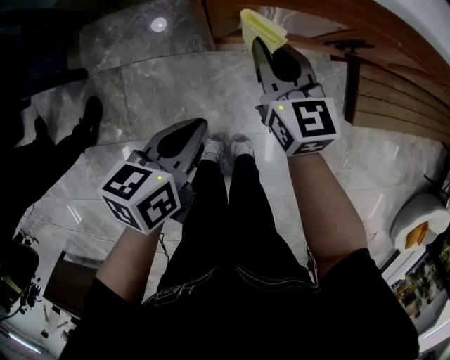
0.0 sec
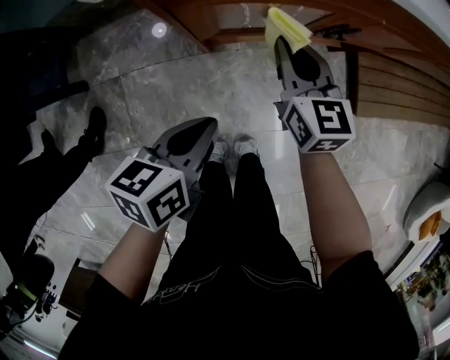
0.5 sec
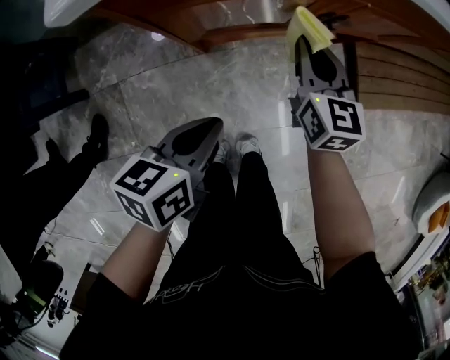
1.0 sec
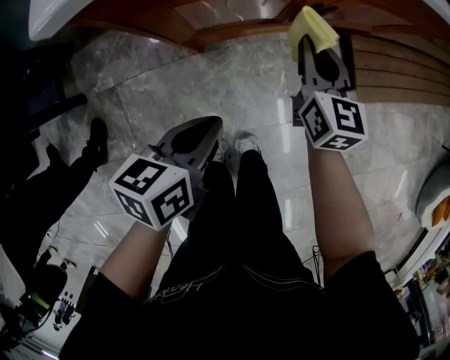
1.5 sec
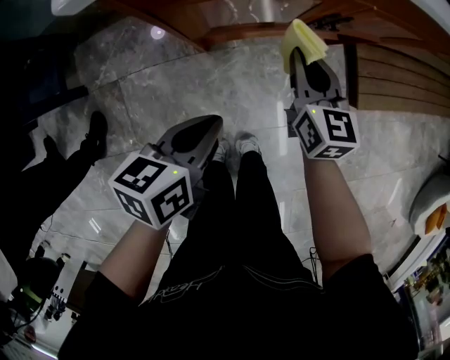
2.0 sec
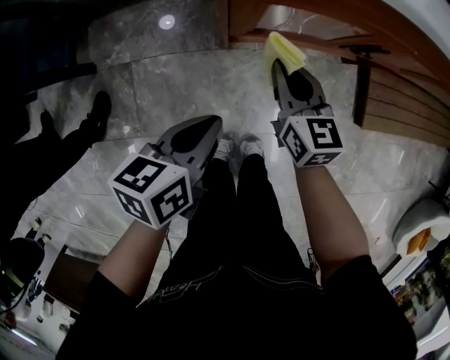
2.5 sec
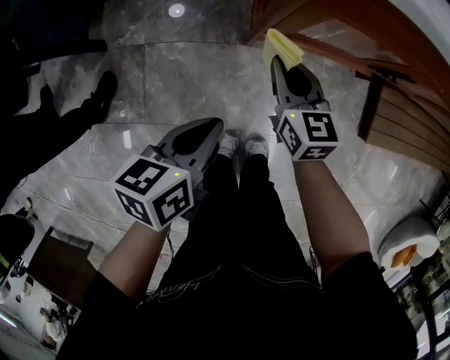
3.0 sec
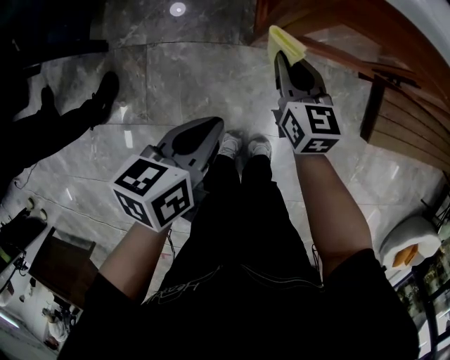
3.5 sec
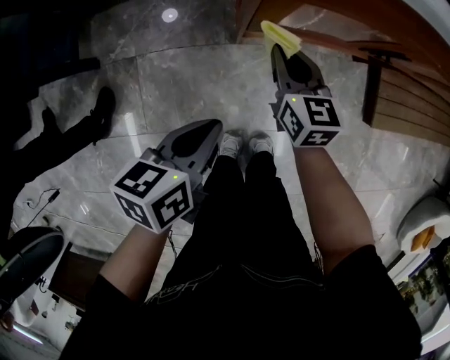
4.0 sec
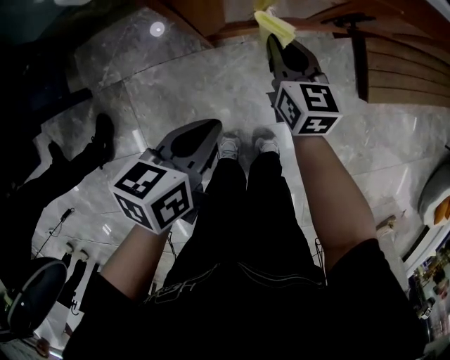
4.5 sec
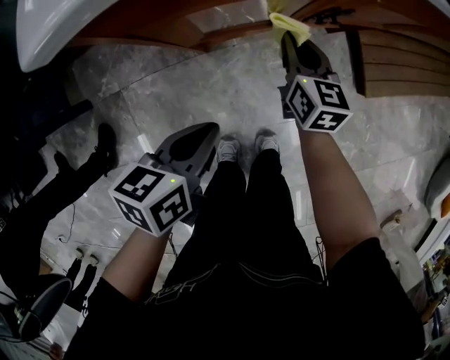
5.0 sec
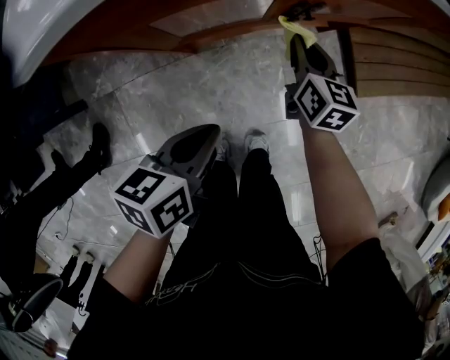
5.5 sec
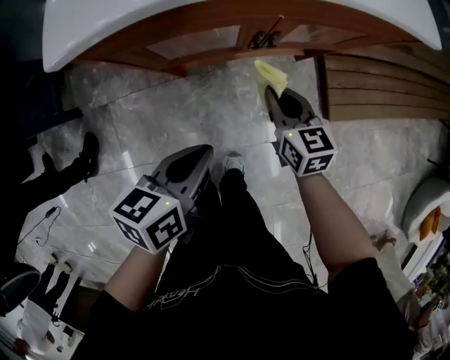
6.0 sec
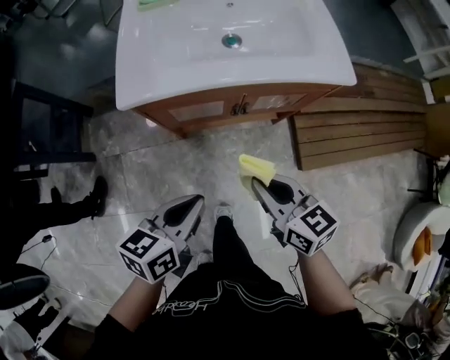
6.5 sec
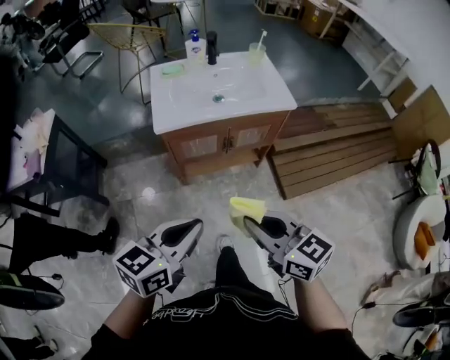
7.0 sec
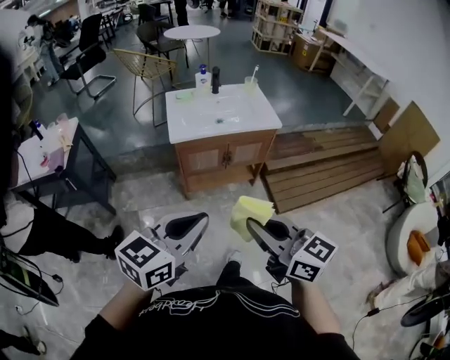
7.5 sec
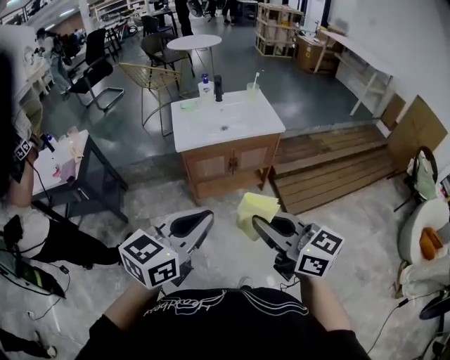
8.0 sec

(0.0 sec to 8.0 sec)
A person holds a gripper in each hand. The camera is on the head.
0.0 sec - 2.0 sec: The right gripper goes roughly 15 cm to the right; the left gripper goes approximately 5 cm to the right.
2.0 sec - 4.0 sec: The right gripper goes some 15 cm to the left. Meanwhile the left gripper moves to the left, about 10 cm.
4.0 sec - 6.0 sec: The left gripper goes about 20 cm to the right and upward; the right gripper is displaced to the right by roughly 20 cm.
6.0 sec - 8.0 sec: Both grippers travel together upward and backward, approximately 70 cm. The left gripper turns by about 50 degrees. Meanwhile the right gripper angles its fingers upward, by approximately 30 degrees.

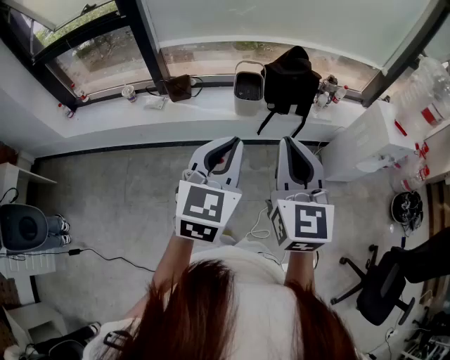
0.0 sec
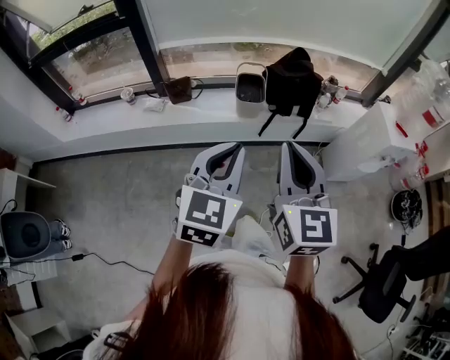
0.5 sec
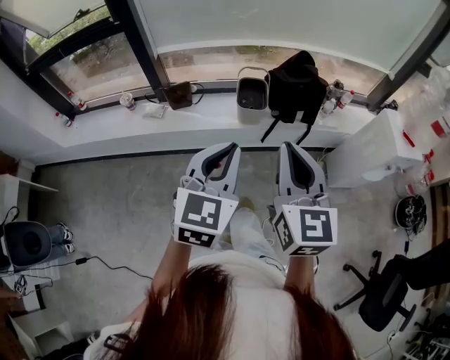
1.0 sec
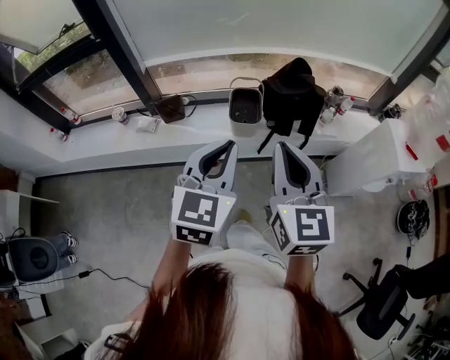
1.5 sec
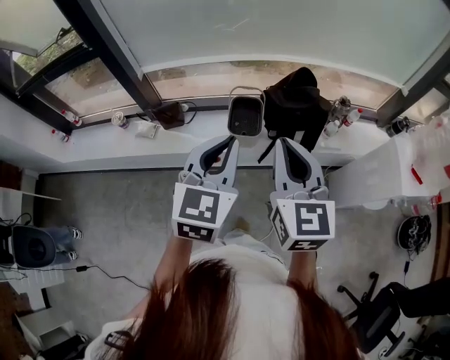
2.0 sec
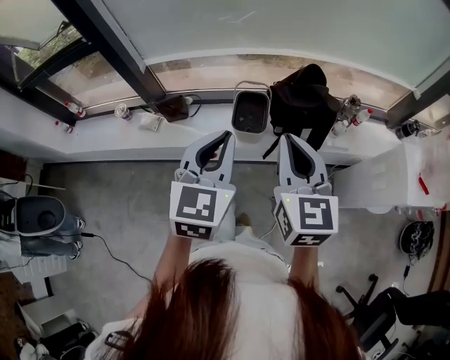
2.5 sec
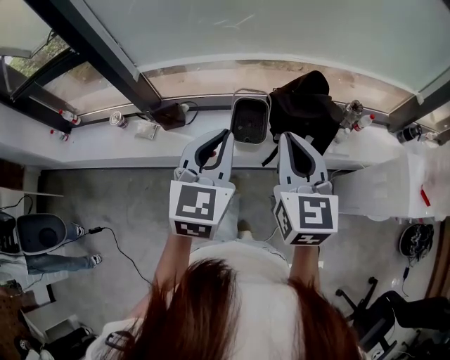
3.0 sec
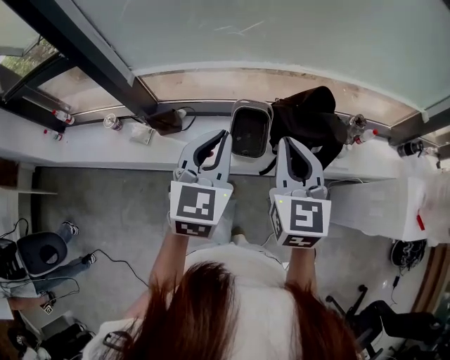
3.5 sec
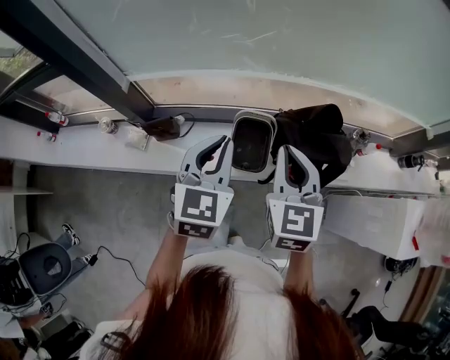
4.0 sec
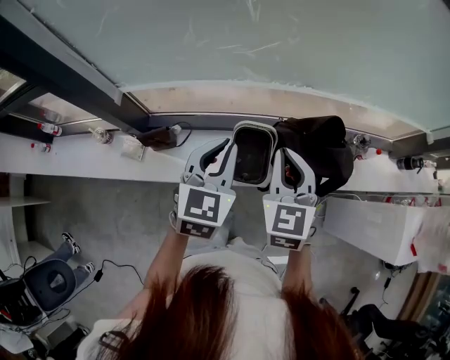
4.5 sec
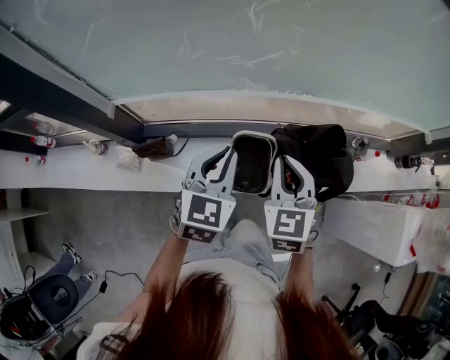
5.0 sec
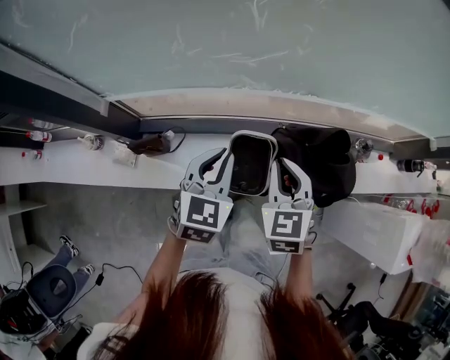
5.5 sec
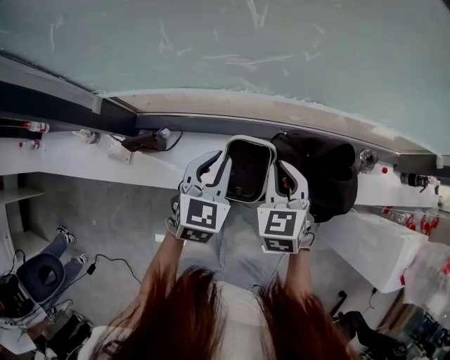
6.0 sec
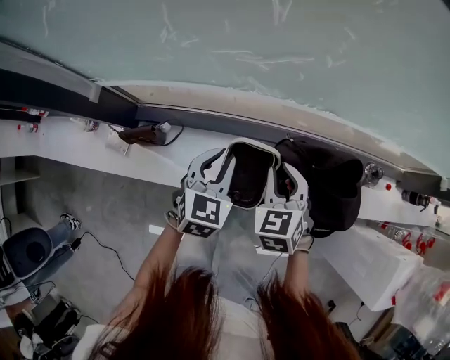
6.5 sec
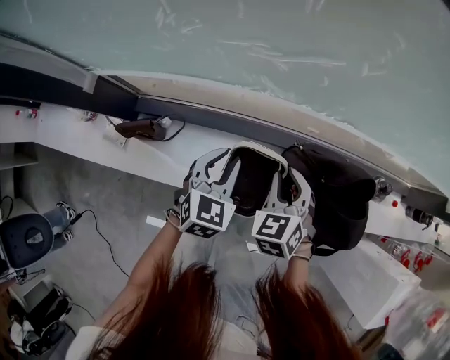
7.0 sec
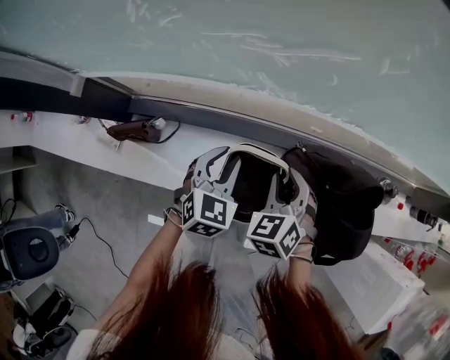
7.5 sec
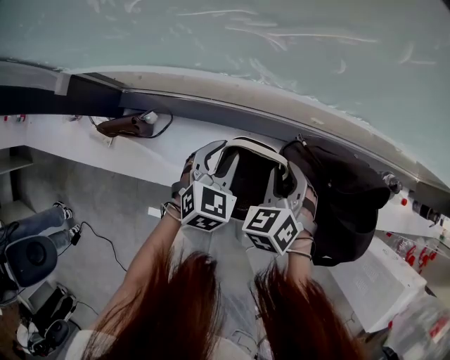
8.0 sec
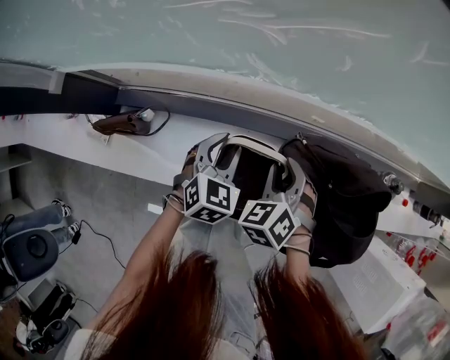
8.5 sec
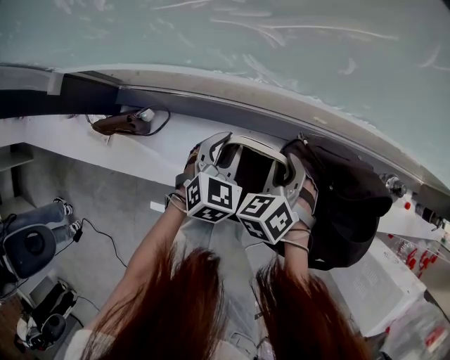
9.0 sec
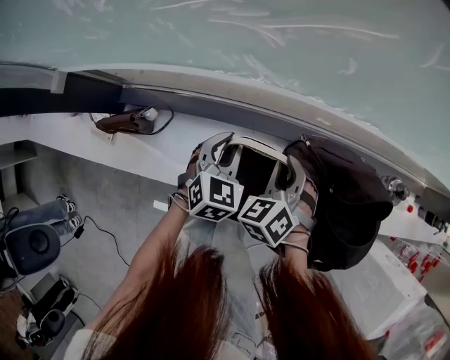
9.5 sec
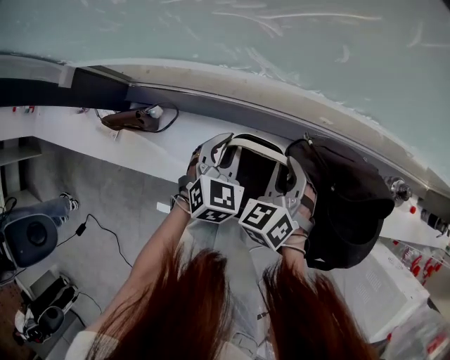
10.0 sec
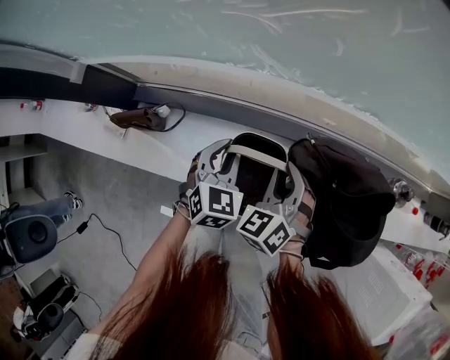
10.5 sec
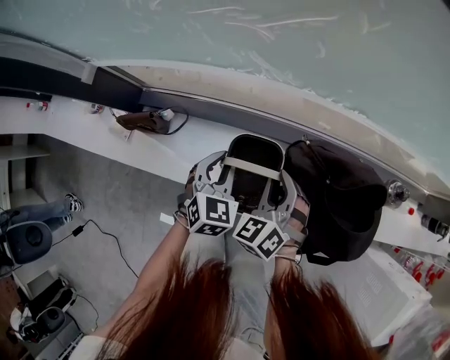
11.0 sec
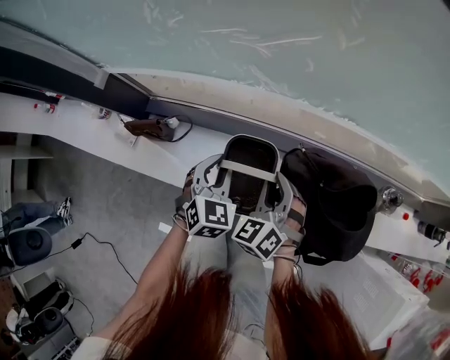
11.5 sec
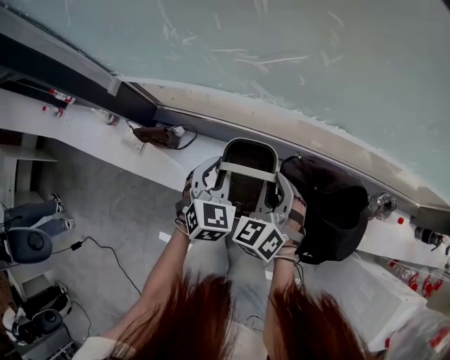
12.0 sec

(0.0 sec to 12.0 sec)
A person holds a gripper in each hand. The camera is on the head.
0.0 sec - 2.0 sec: The grippers both shift forward by some 30 cm.
2.0 sec - 4.0 sec: Both grippers travel together forward, about 25 cm.
4.0 sec - 6.0 sec: The two grippers go approximately 20 cm downward and forward. The right gripper turns by approximately 20 degrees.
6.0 sec - 8.0 sec: Both grippers travel together downward, about 20 cm. The right gripper rotates roughly 30 degrees, and opens its fingers.
8.0 sec - 10.0 sec: The grippers make only small movements.
10.0 sec - 12.0 sec: The left gripper shifts roughly 15 cm upward and backward. Meanwhile the right gripper travels upward by about 10 cm.

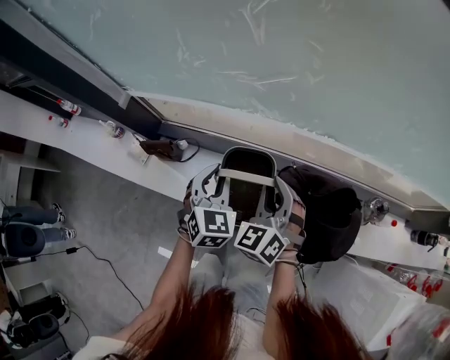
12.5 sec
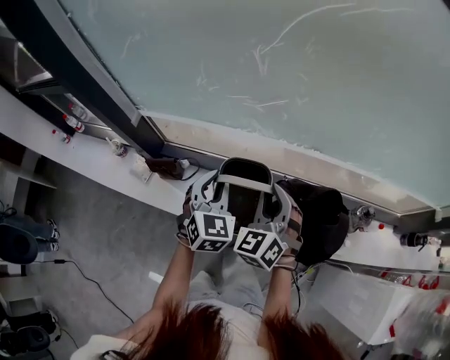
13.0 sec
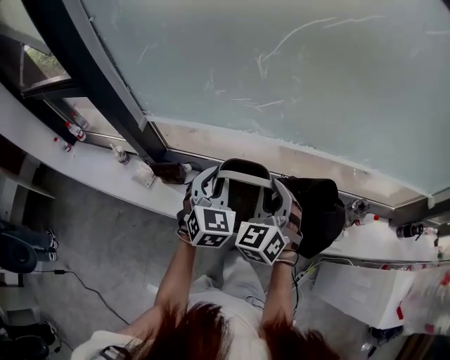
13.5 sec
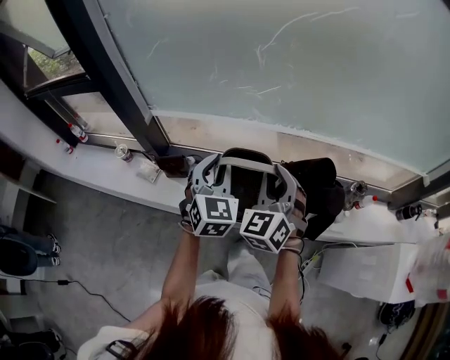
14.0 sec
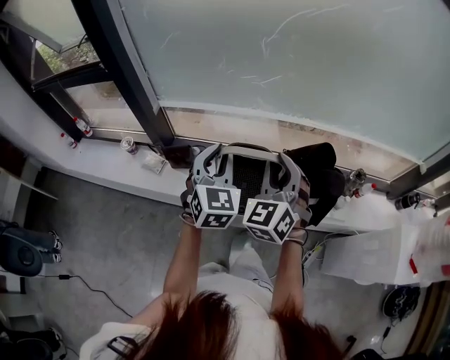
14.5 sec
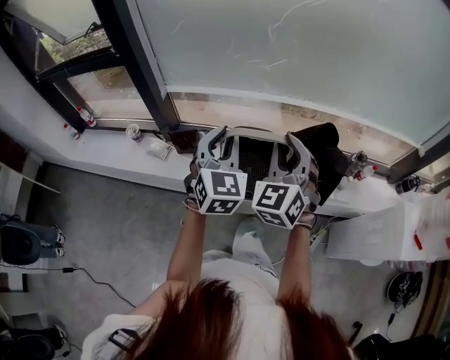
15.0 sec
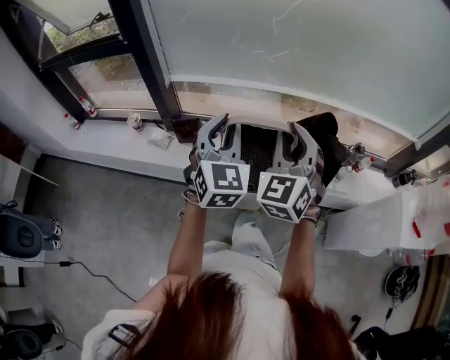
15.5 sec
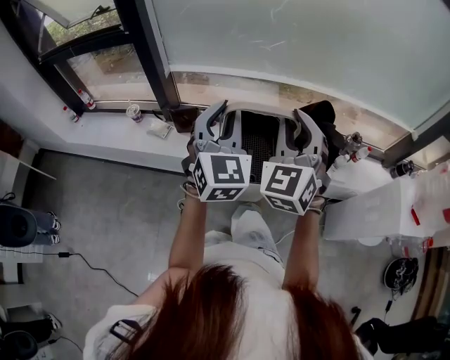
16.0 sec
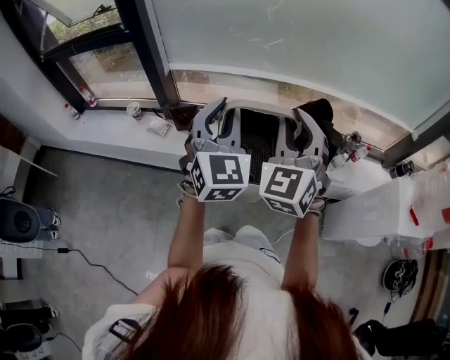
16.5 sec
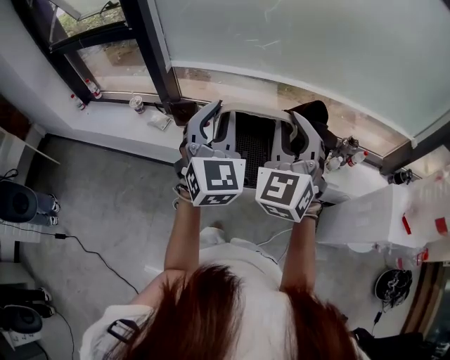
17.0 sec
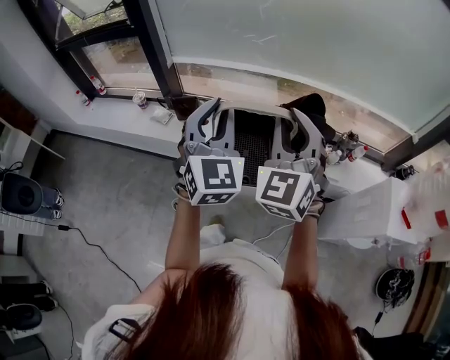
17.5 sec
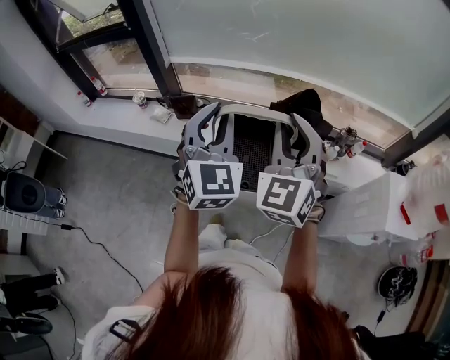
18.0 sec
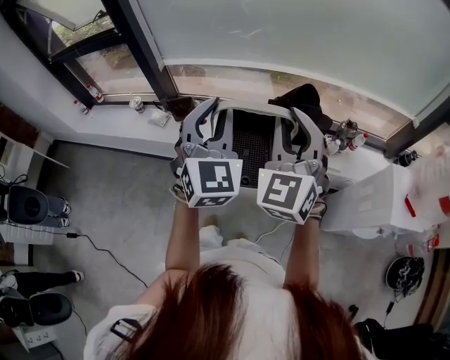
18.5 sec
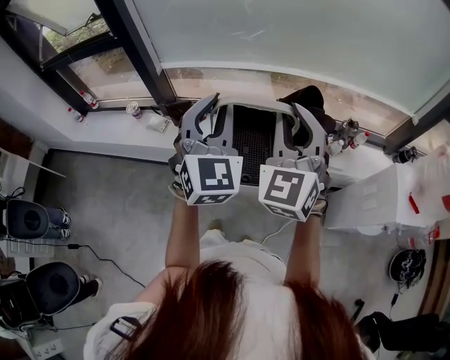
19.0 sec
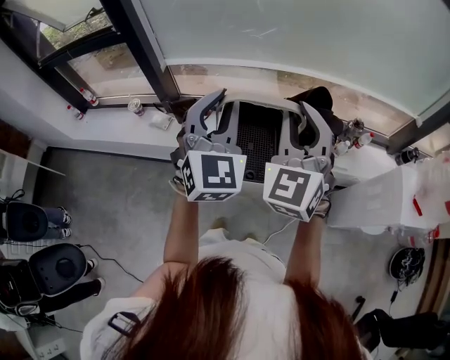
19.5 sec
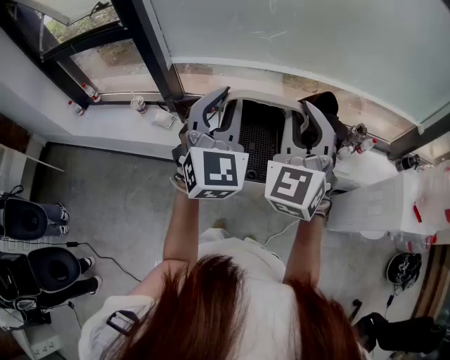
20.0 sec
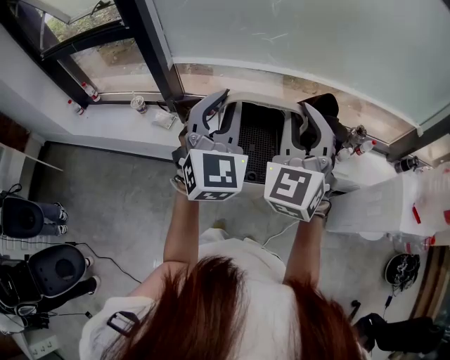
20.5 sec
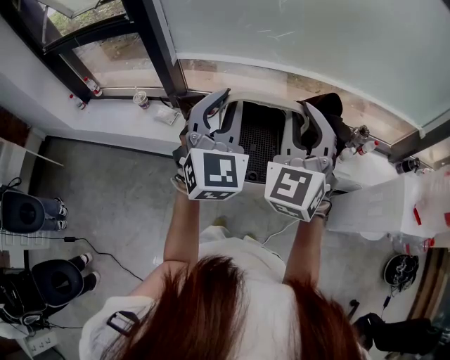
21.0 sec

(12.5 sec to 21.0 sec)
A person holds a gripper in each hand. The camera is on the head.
12.5 sec - 14.5 sec: Both grippers move upward and backward, approximately 30 cm.
14.5 sec - 16.5 sec: Both grippers move backward and upward, some 20 cm.
16.5 sec - 19.0 sec: Both grippers travel together to the right, about 5 cm.
19.0 sec - 21.0 sec: The grippers both shift to the left by roughly 10 cm.
